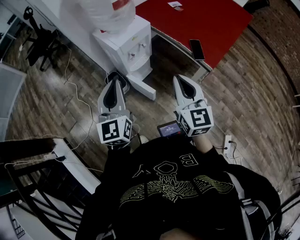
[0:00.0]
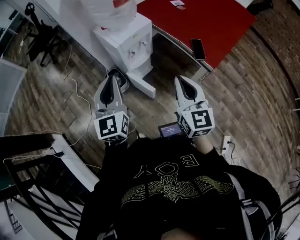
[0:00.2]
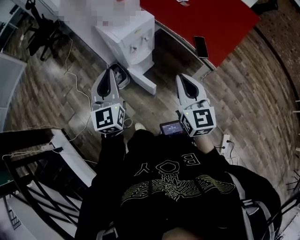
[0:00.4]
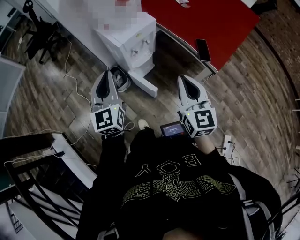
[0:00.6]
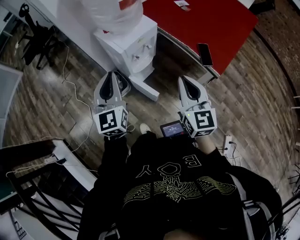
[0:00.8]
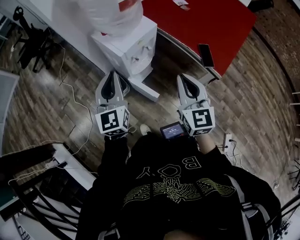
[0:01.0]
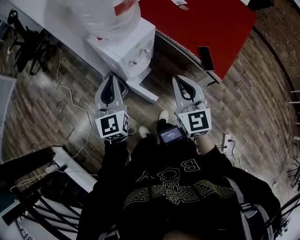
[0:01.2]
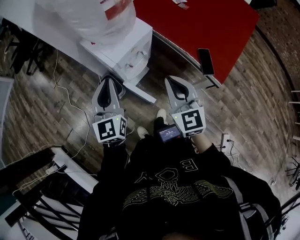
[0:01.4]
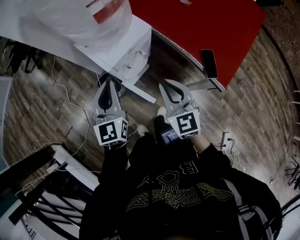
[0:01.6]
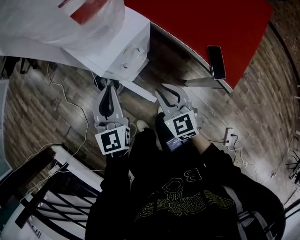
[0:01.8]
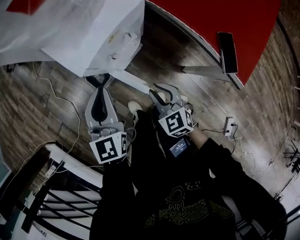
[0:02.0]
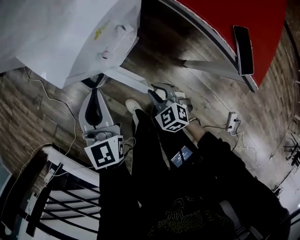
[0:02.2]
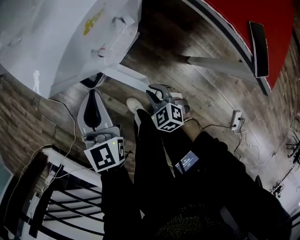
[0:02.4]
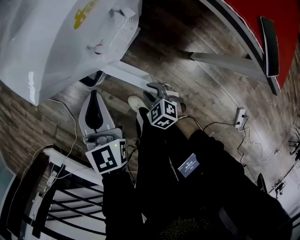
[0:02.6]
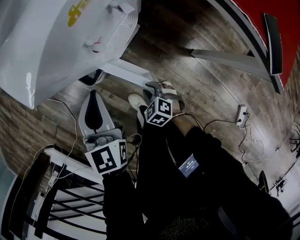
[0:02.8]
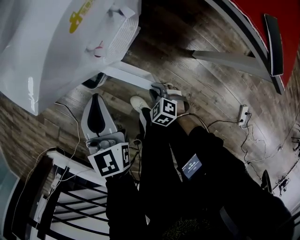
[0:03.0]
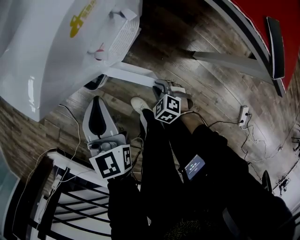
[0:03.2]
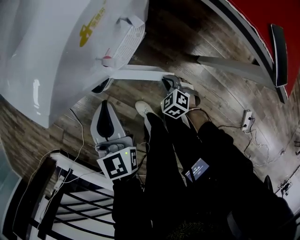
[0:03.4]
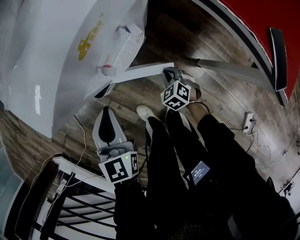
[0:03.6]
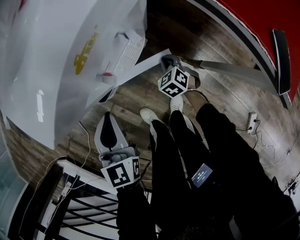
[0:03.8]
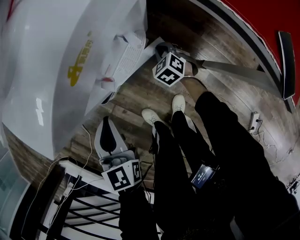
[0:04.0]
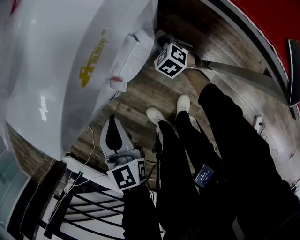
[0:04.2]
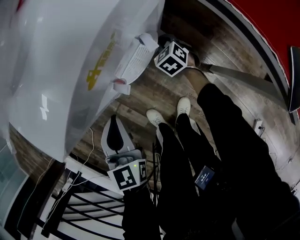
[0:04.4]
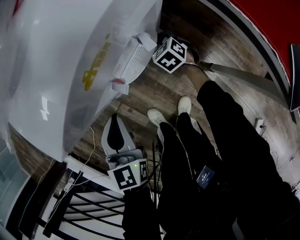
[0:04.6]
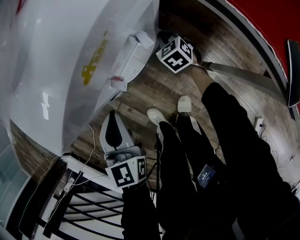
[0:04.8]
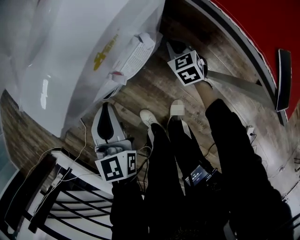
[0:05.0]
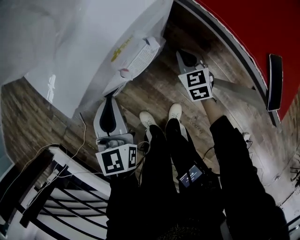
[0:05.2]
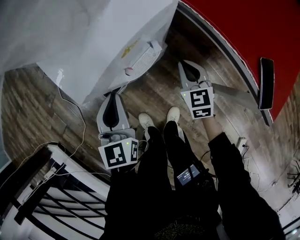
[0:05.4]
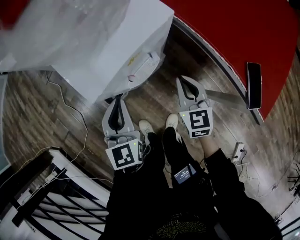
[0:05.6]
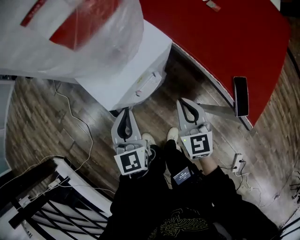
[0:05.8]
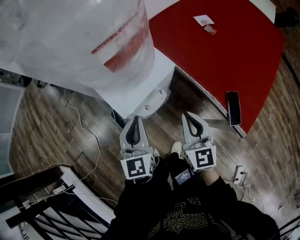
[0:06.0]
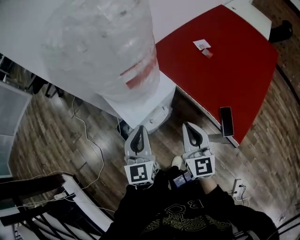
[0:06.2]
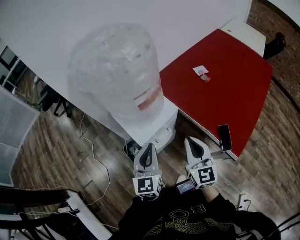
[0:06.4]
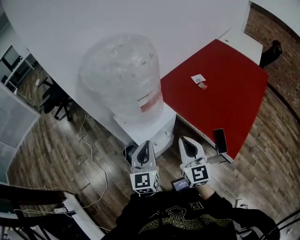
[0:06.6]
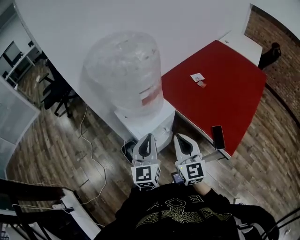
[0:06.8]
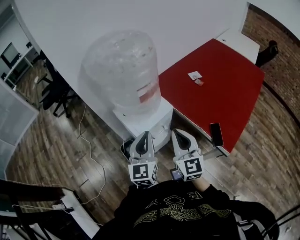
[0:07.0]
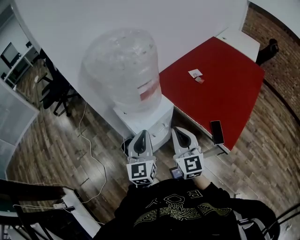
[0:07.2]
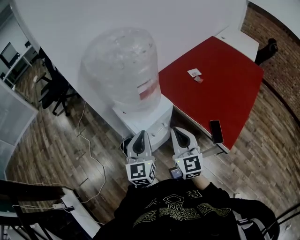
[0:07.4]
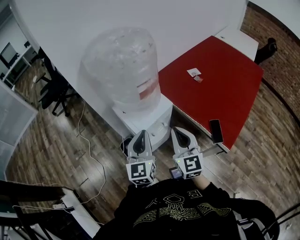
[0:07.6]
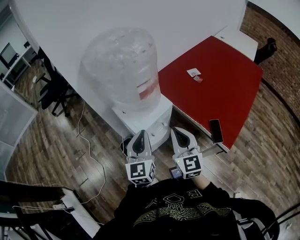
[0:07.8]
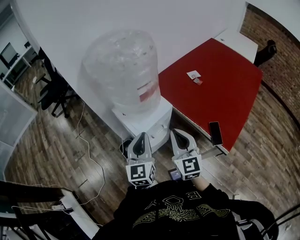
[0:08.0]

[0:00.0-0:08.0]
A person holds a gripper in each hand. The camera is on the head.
0.0 to 1.6 s: Both grippers move forward and downward, about 25 cm.
1.6 to 3.2 s: The right gripper moves downward, about 50 cm, and points its fingers about 50 degrees further downward. The left gripper travels downward by roughly 30 cm.
3.2 to 4.8 s: The right gripper travels forward by some 30 cm, and rotates approximately 20 degrees.
4.8 to 6.4 s: The left gripper heads upward, covering some 35 cm. The right gripper travels upward by approximately 60 cm, and tips its fingers upward by roughly 40 degrees.
6.4 to 8.0 s: The right gripper shifts approximately 5 cm to the left; the left gripper is displaced upward by approximately 5 cm.

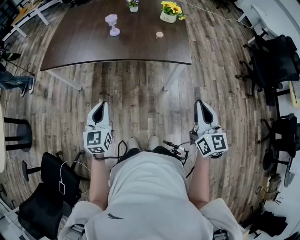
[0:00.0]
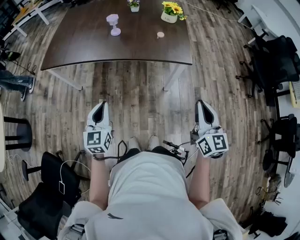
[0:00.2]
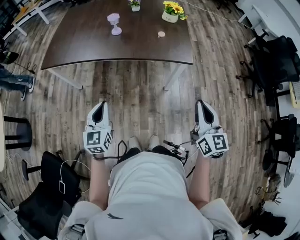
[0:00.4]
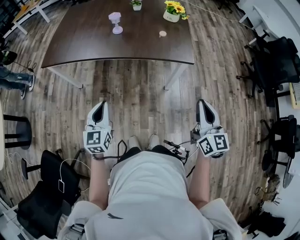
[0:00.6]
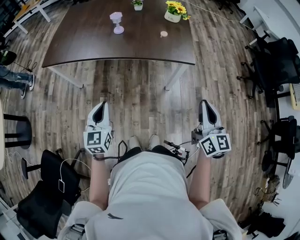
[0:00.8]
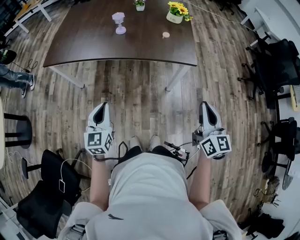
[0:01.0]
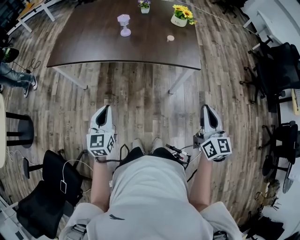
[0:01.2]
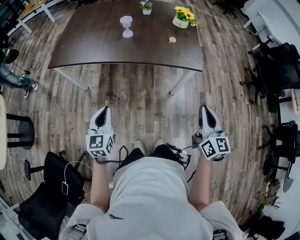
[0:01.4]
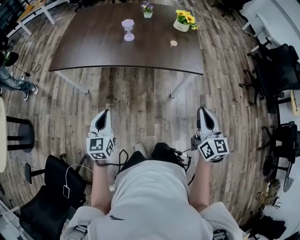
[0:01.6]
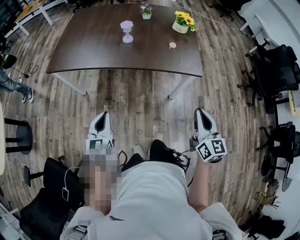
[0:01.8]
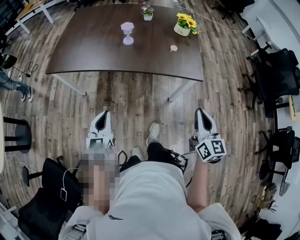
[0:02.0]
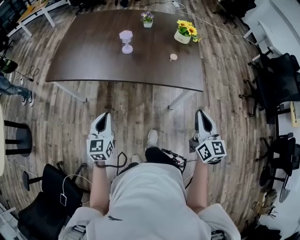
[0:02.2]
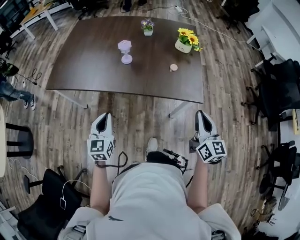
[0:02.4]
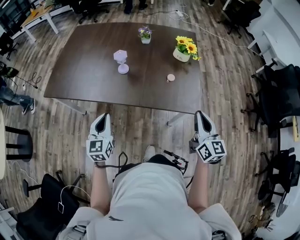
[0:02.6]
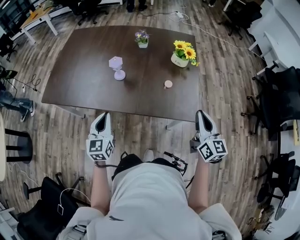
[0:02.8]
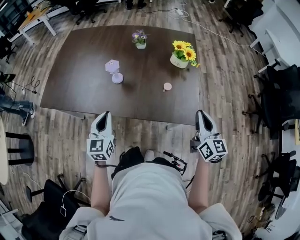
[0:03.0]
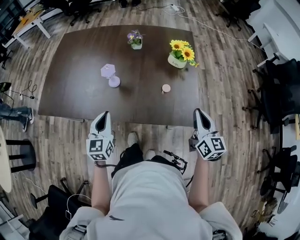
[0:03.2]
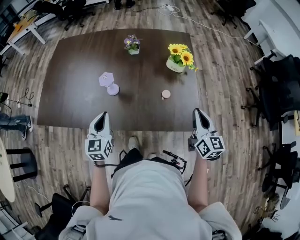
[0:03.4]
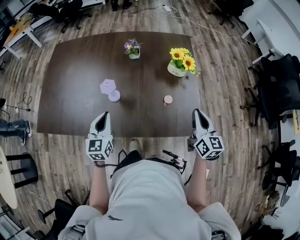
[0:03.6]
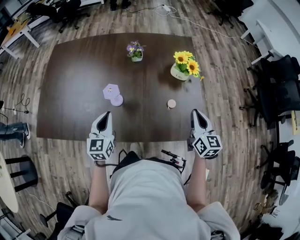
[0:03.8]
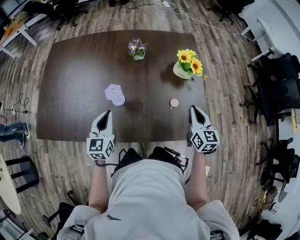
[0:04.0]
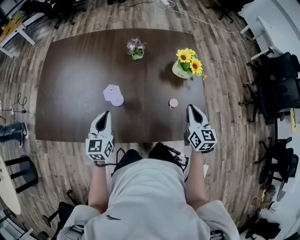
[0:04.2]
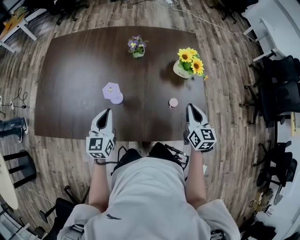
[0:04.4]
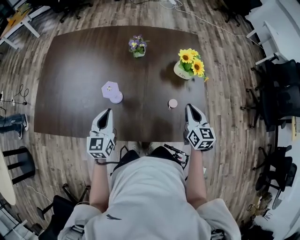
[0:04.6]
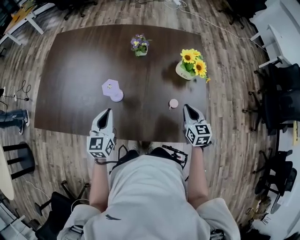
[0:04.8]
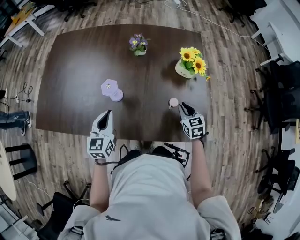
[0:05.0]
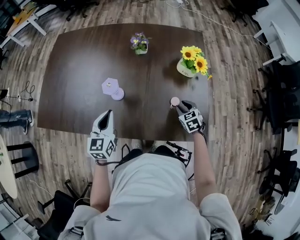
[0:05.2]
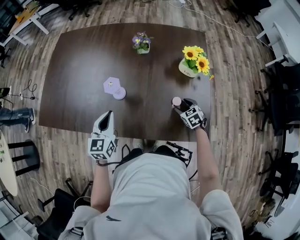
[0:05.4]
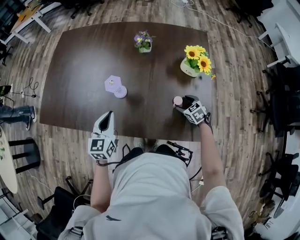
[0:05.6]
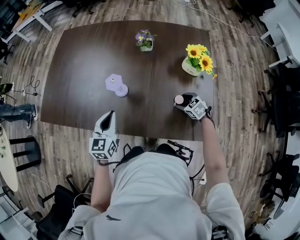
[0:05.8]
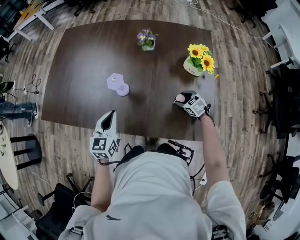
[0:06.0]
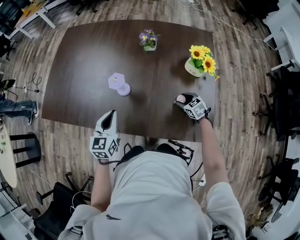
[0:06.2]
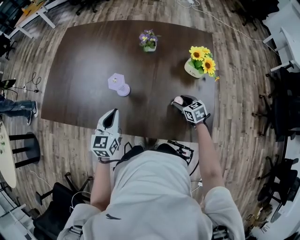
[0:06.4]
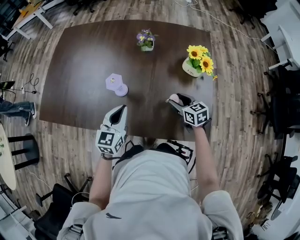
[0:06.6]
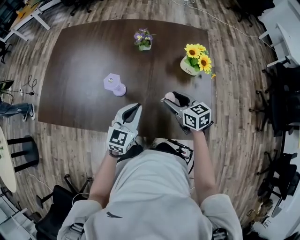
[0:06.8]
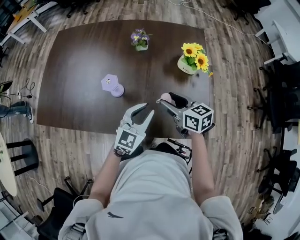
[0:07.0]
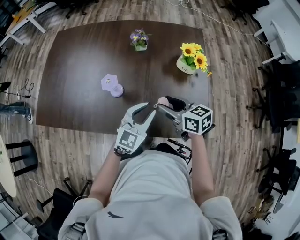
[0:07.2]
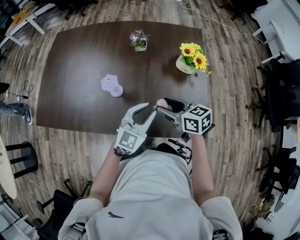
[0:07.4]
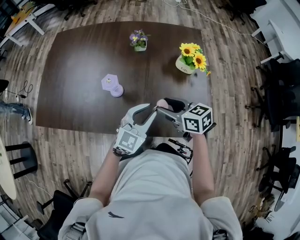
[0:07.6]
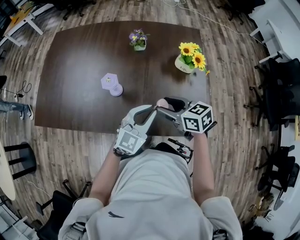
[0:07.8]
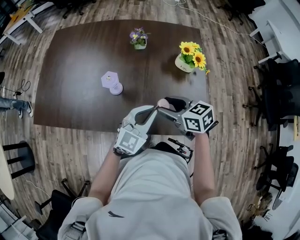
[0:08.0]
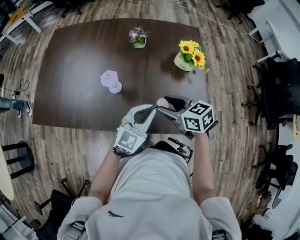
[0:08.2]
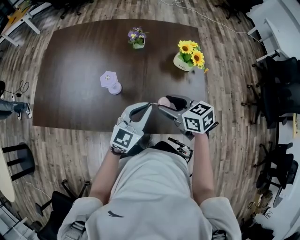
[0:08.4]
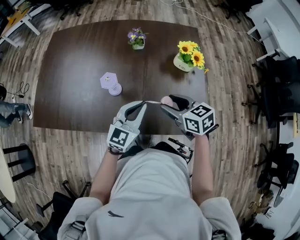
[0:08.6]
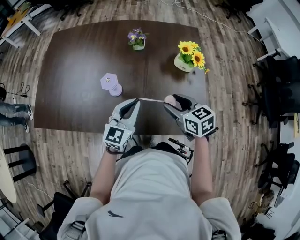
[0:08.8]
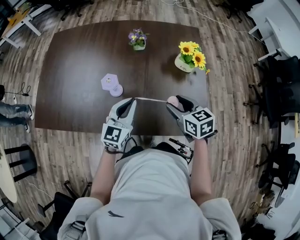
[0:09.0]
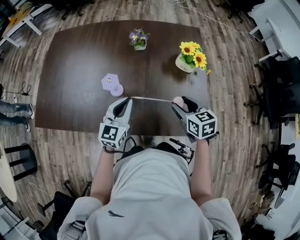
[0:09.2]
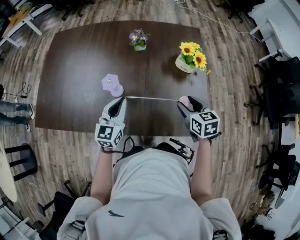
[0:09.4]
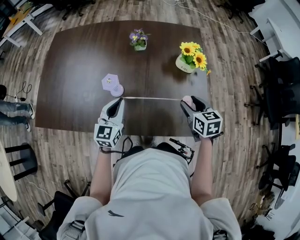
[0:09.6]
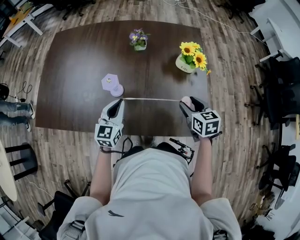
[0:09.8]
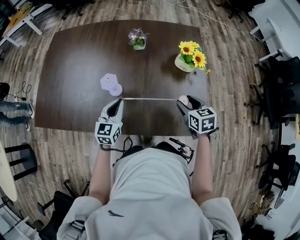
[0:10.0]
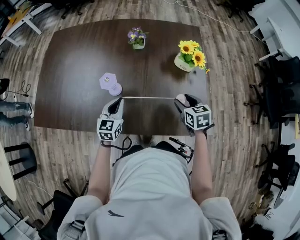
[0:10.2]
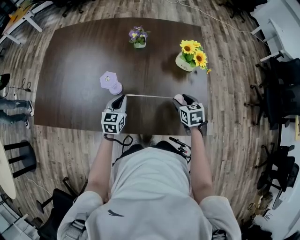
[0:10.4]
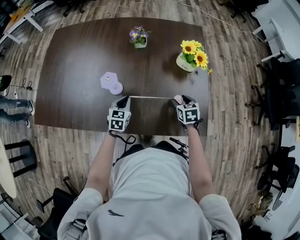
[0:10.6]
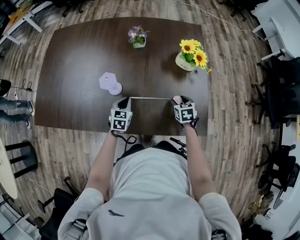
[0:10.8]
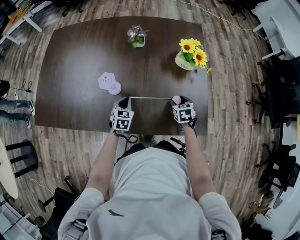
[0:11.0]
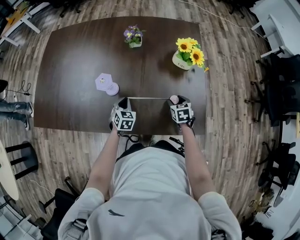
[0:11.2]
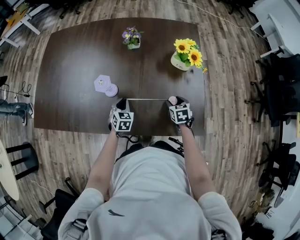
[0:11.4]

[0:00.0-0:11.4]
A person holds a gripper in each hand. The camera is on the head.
0.0 to 1.4 s: The left gripper is displaced to the left by some 5 cm.
1.4 to 2.8 s: The two grippers go about 30 cm forward.
2.8 to 4.2 s: The right gripper heads forward and downward, covering some 20 cm. The left gripper shifts roughly 20 cm forward.
4.2 to 5.6 s: The right gripper goes about 20 cm downward, points its fingers approximately 40 degrees further downward, and opens up.
5.6 to 7.2 s: The left gripper goes approximately 20 cm to the right, changes its angle by about 30 degrees, and opens; the right gripper is displaced upward and to the left by some 25 cm, and points its fingers approximately 30 degrees further upward.
7.2 to 8.6 s: The left gripper closes up.
8.6 to 10.0 s: The left gripper is displaced to the left and downward by roughly 15 cm, and swivels some 20 degrees, while the right gripper moves to the right and downward, about 10 cm, and changes its angle by roughly 20 degrees.
10.0 to 11.4 s: Both grippers move downward, approximately 15 cm. The left gripper rotates some 30 degrees.

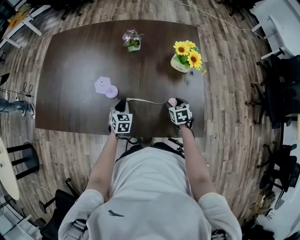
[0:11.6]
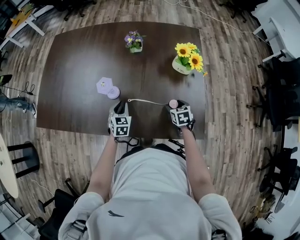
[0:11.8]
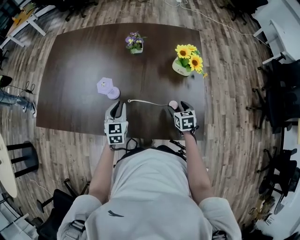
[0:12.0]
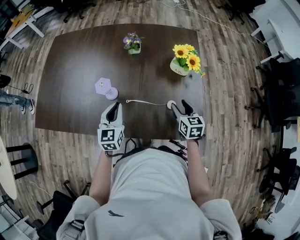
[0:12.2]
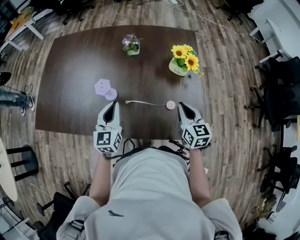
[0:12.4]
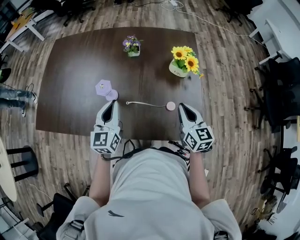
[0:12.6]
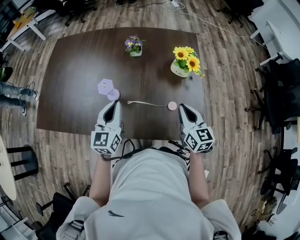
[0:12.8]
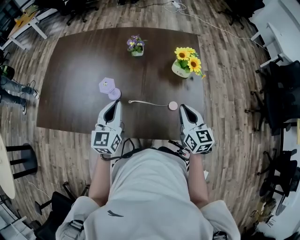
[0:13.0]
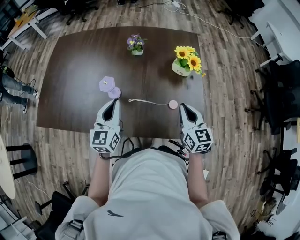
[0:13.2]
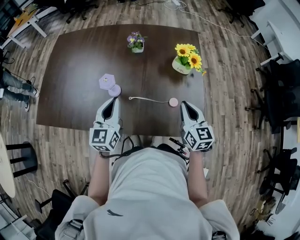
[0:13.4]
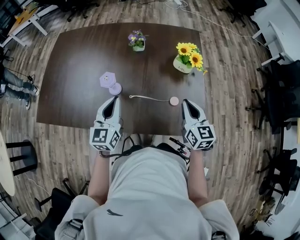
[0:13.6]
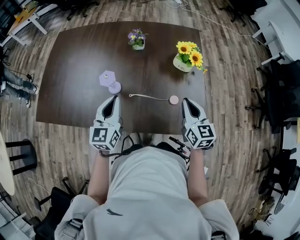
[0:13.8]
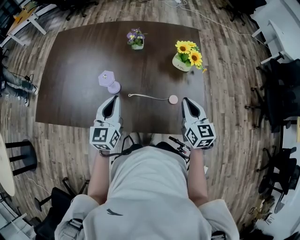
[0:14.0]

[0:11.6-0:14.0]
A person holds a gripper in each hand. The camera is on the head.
11.6 to 12.8 s: The two grippers go roughly 25 cm upward. The right gripper angles its fingers upward, by approximately 40 degrees, and closes its fingers. The left gripper angles its fingers upward, by about 30 degrees.
12.8 to 14.0 s: The grippers move only a little.

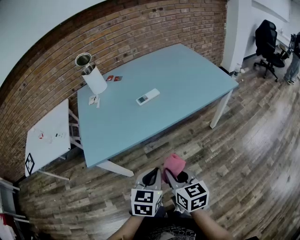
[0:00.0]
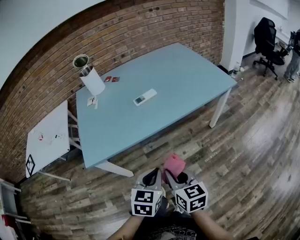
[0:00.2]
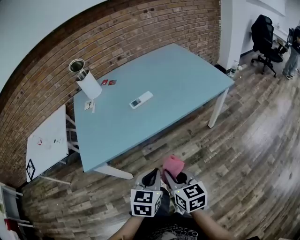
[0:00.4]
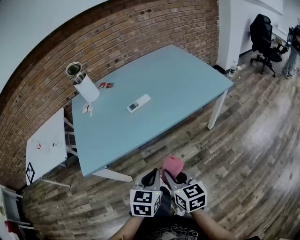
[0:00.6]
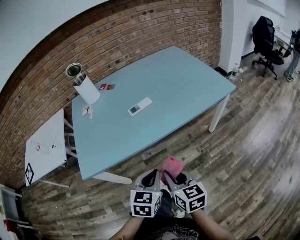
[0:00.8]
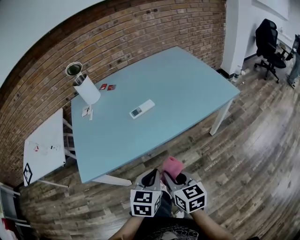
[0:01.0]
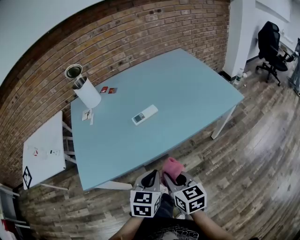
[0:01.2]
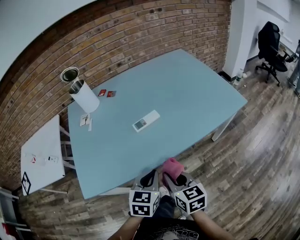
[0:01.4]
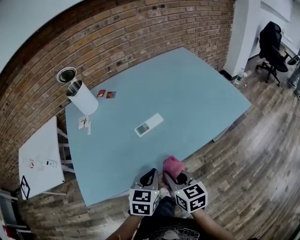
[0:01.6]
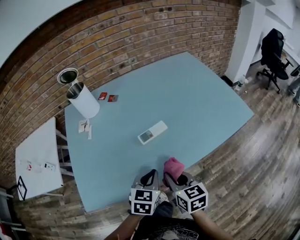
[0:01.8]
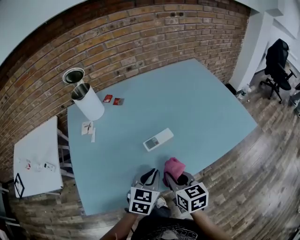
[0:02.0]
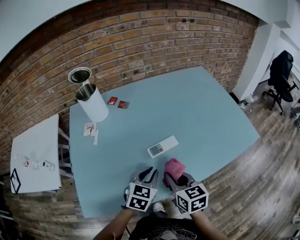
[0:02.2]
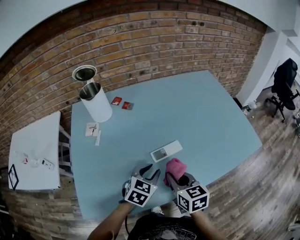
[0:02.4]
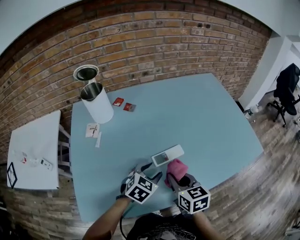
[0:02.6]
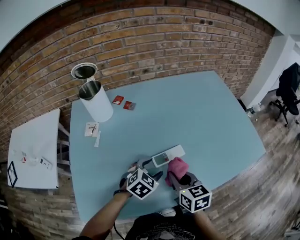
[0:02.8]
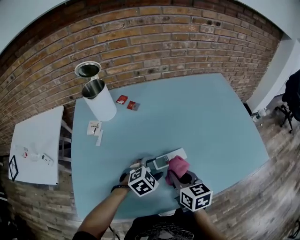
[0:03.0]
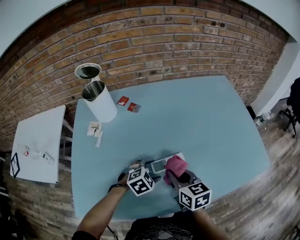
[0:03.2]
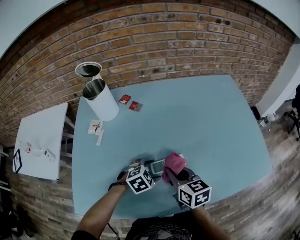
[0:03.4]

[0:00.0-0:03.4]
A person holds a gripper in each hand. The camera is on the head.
0.0 to 1.6 s: Both grippers move forward, some 20 cm.
1.6 to 3.4 s: The right gripper moves forward, some 25 cm, while the left gripper moves forward and downward, approximately 25 cm, swivels roughly 40 degrees, and opens up.
